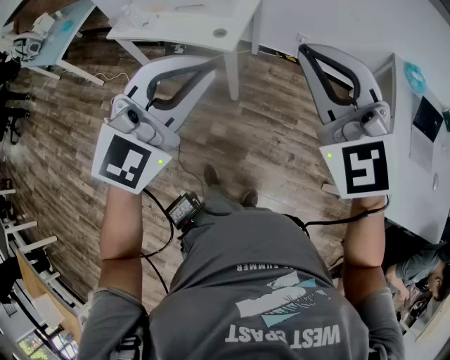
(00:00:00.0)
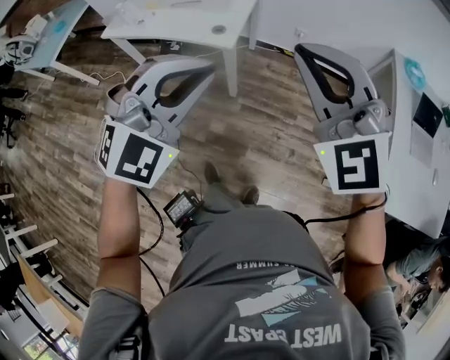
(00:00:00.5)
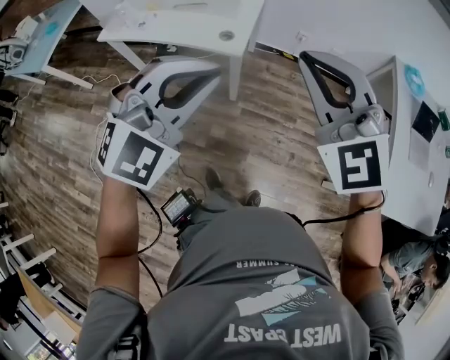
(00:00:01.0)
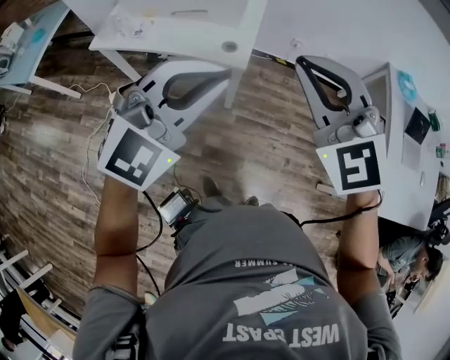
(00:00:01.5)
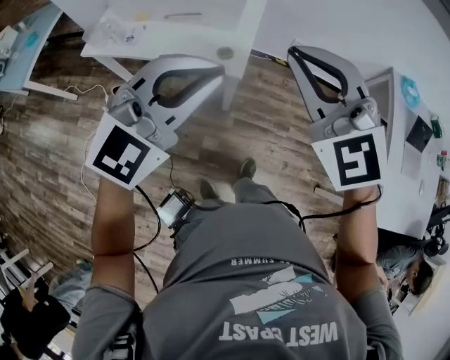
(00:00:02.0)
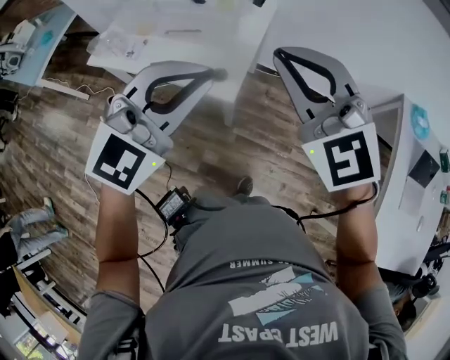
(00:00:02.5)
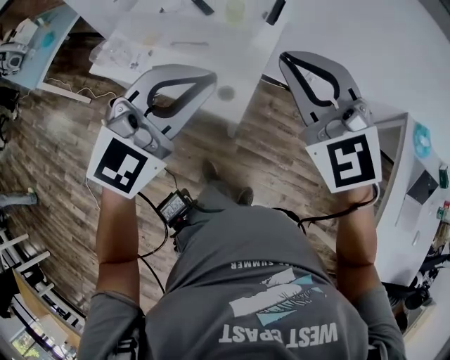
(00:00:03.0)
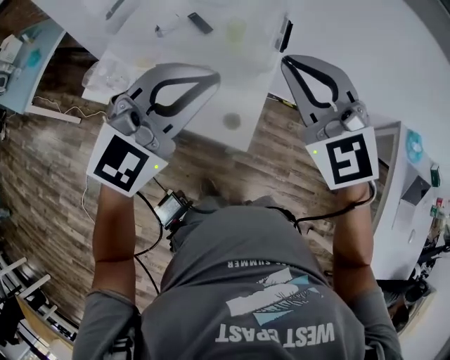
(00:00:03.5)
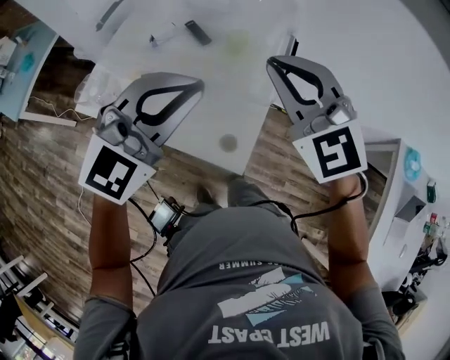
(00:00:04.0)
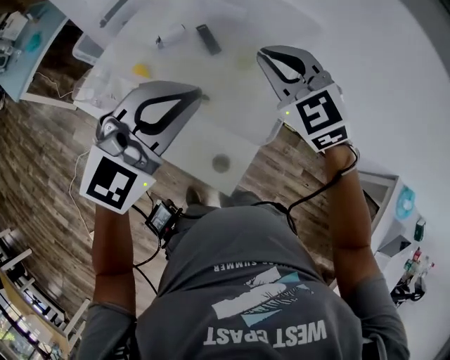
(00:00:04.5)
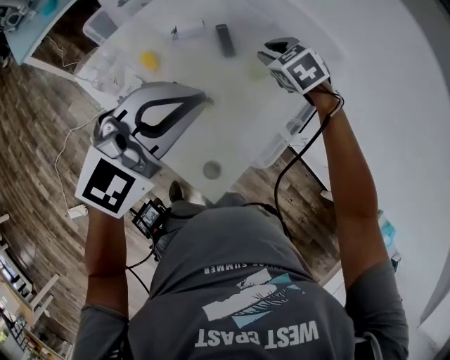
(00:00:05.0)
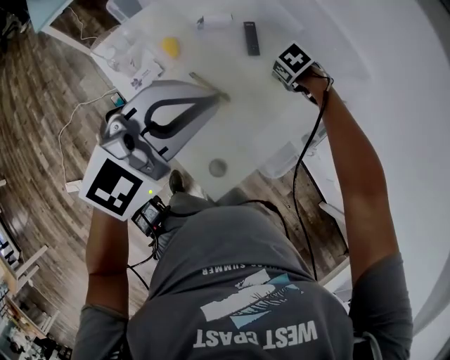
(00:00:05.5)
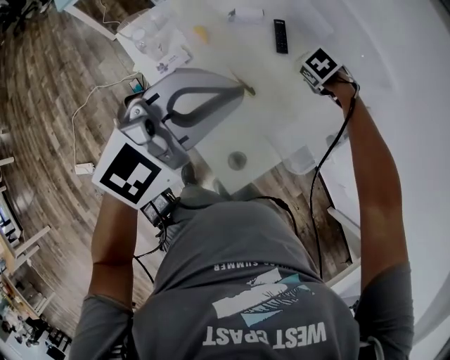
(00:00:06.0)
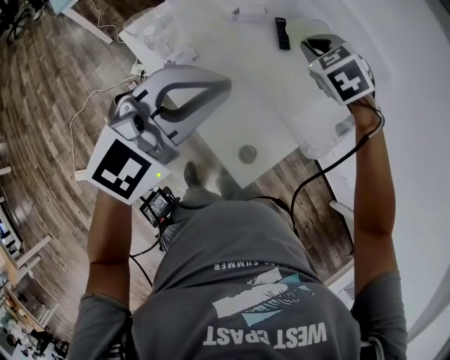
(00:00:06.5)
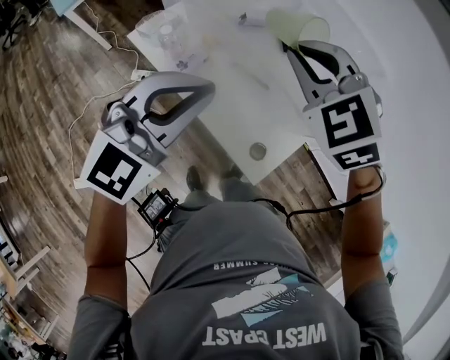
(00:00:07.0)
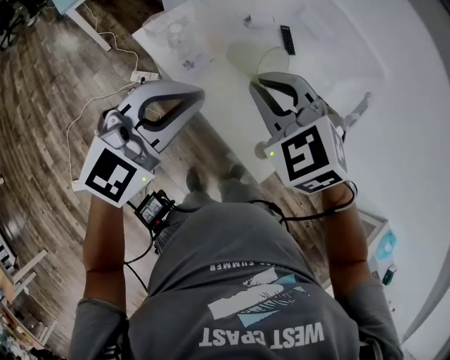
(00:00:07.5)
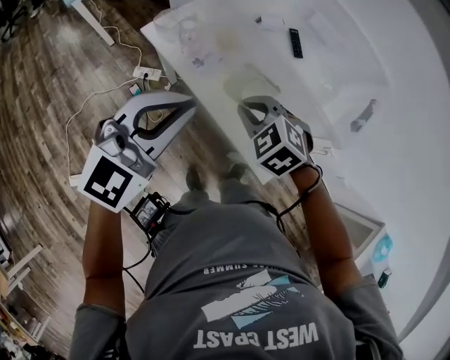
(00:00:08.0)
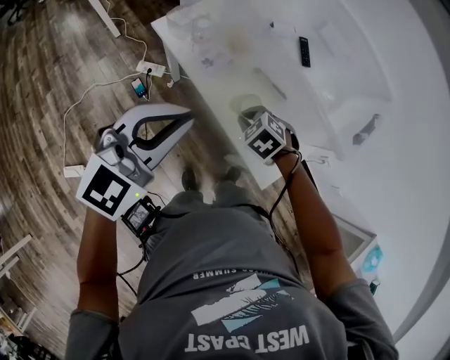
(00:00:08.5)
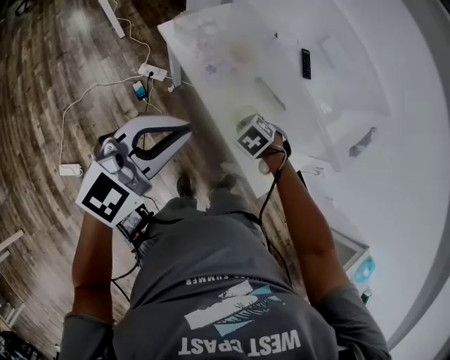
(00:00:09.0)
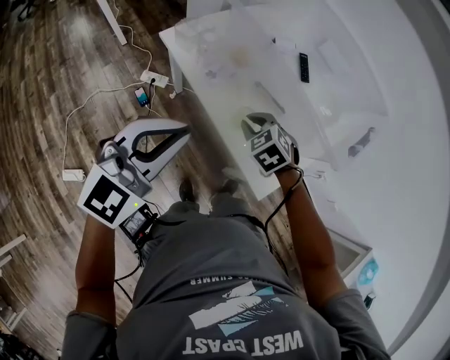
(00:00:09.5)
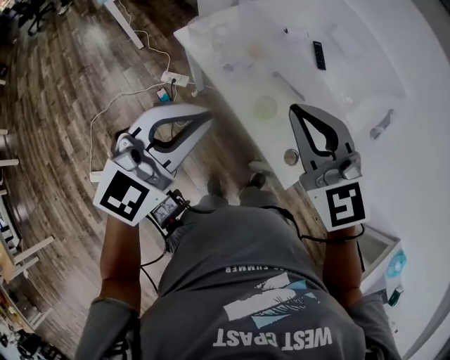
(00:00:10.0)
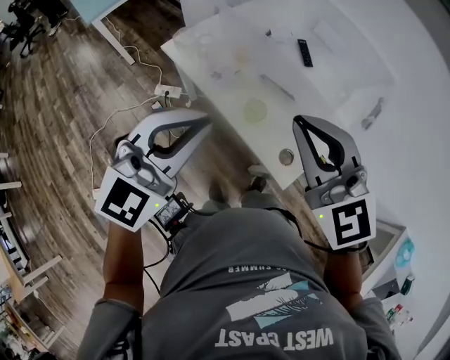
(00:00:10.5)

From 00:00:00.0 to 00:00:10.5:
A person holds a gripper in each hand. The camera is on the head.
From 00:00:00.0 to 00:00:02.0: Both grippers move forward and to the left, some 25 cm.
From 00:00:02.0 to 00:00:04.0: Both grippers travel together forward, roughly 35 cm.
From 00:00:04.0 to 00:00:06.5: The right gripper angles its fingers downward, by approximately 40 degrees, and opens and closes again; the left gripper shifts by some 10 cm, and swivels roughly 30 degrees.
From 00:00:06.5 to 00:00:08.5: The left gripper shifts some 20 cm to the left and backward; the right gripper travels backward, downward and to the left by approximately 35 cm.
From 00:00:08.5 to 00:00:10.5: The right gripper shifts roughly 35 cm upward, and tilts its fingers some 60 degrees upward. The left gripper is displaced upward by about 5 cm.

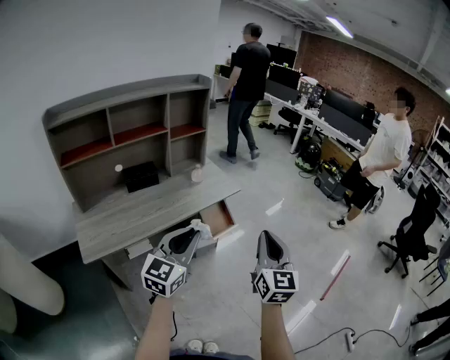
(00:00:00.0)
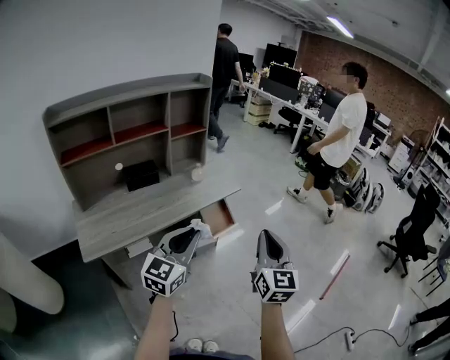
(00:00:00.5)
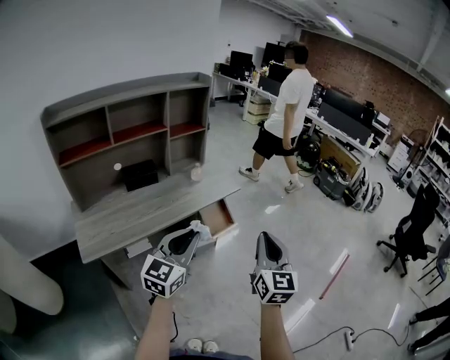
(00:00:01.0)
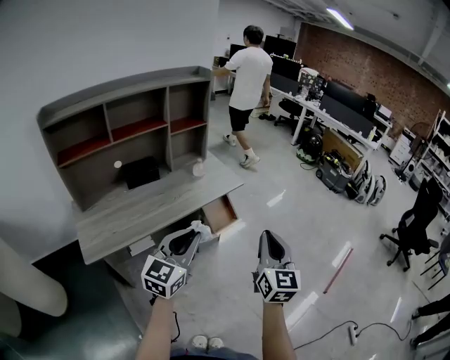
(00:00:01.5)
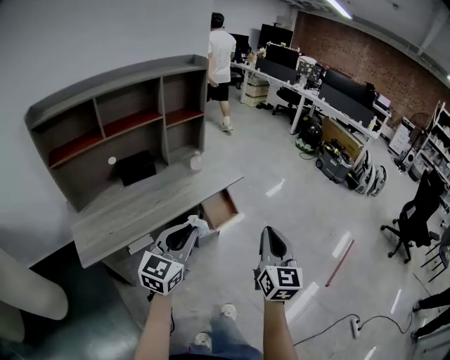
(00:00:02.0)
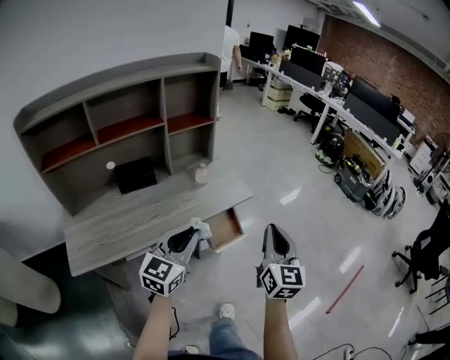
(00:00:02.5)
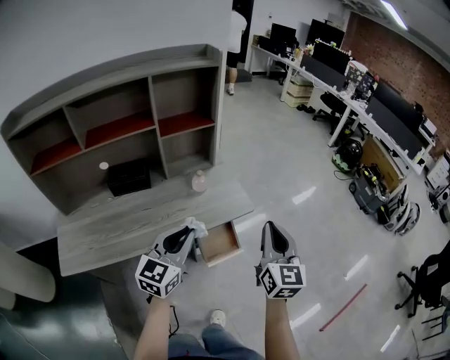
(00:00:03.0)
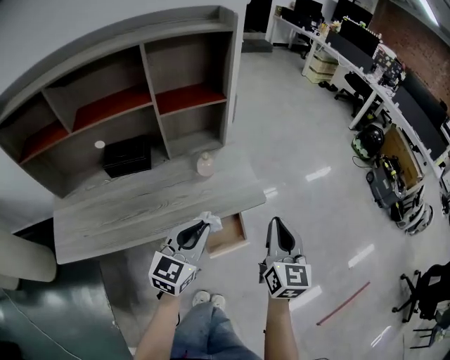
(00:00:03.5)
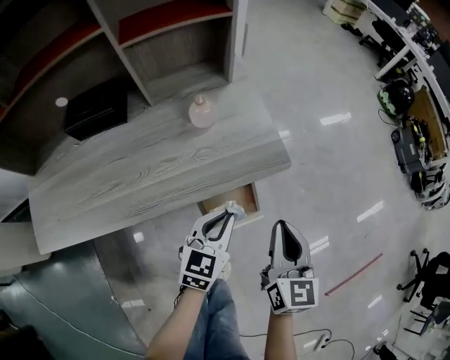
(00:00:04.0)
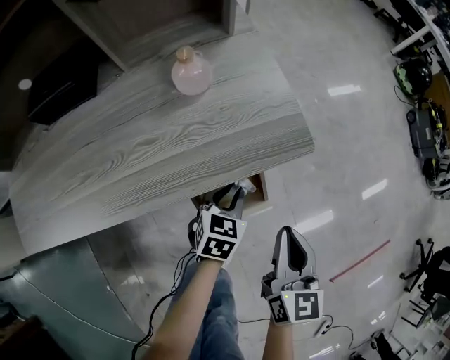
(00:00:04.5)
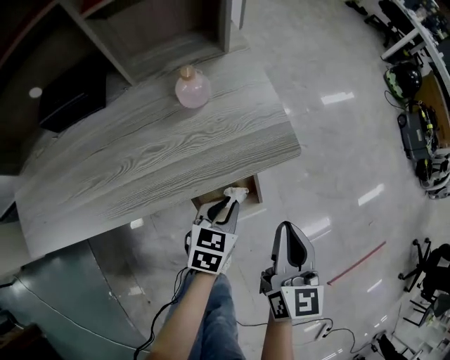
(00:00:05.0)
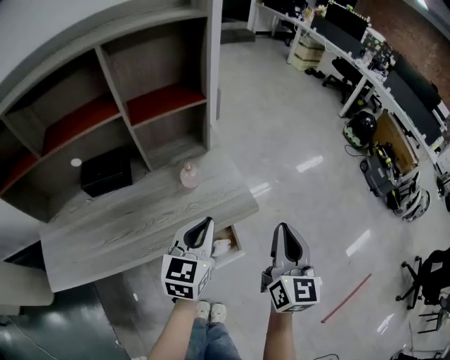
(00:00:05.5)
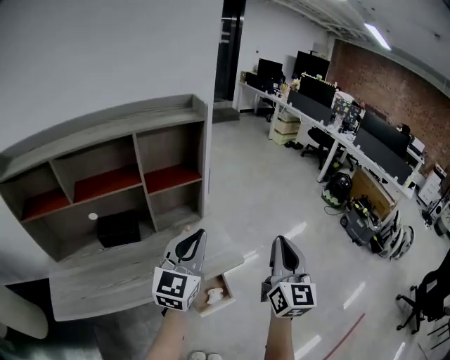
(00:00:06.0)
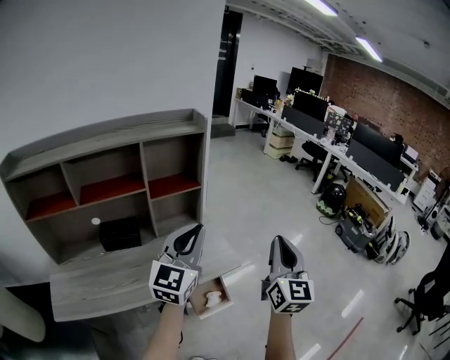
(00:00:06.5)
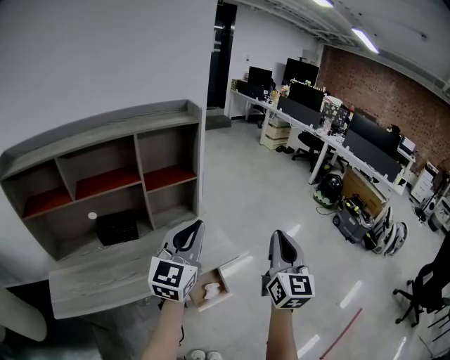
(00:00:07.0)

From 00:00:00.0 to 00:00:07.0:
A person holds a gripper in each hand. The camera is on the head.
From 00:00:00.0 to 00:00:02.0: The left gripper changes place by about 5 cm.
From 00:00:02.0 to 00:00:03.5: The grippers both shift forward by some 35 cm.
From 00:00:03.5 to 00:00:05.0: The left gripper heads downward, covering about 30 cm, and turns by roughly 30 degrees. The right gripper heads downward, covering roughly 20 cm.
From 00:00:05.0 to 00:00:07.0: Both grippers travel together upward, about 50 cm. The left gripper angles its fingers upward, by some 50 degrees. Meanwhile the right gripper tips its fingers upward by about 30 degrees.

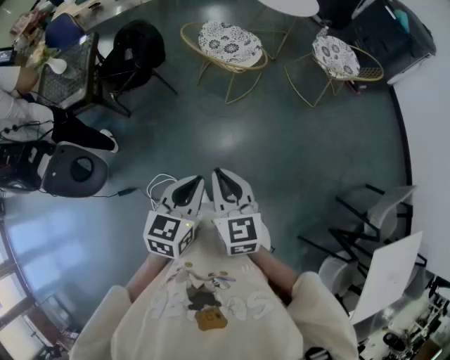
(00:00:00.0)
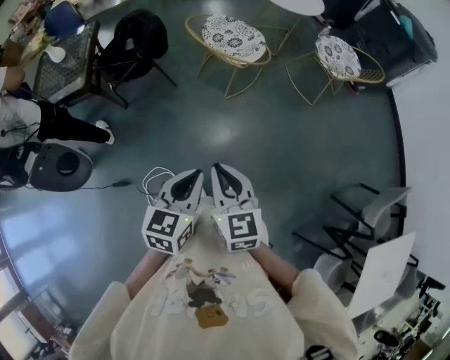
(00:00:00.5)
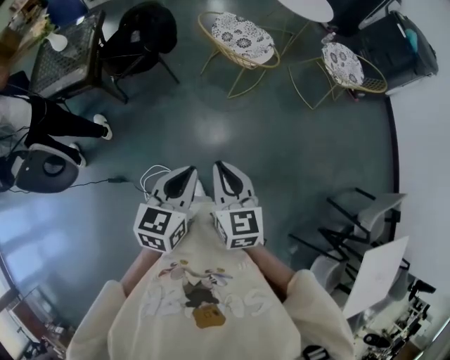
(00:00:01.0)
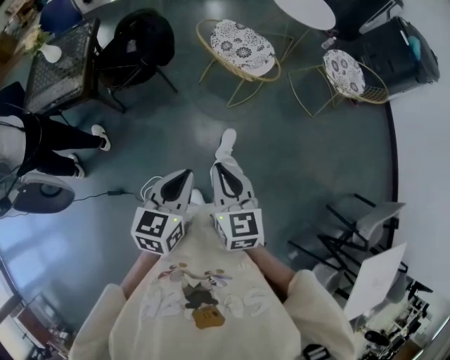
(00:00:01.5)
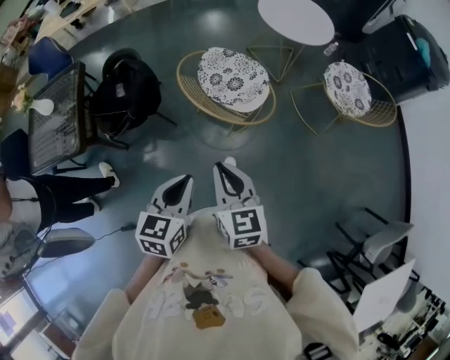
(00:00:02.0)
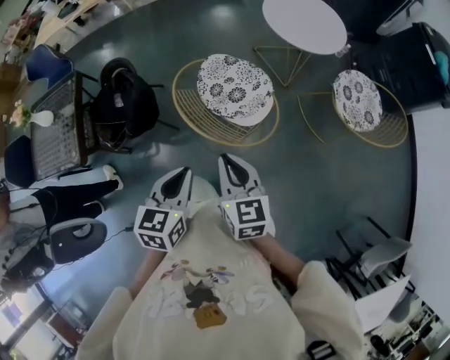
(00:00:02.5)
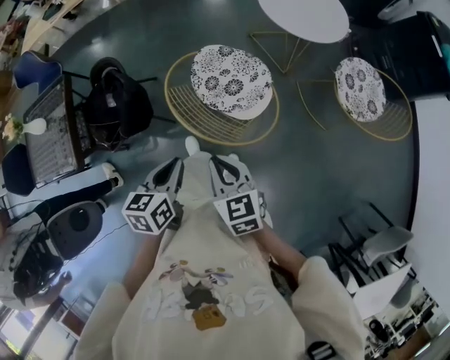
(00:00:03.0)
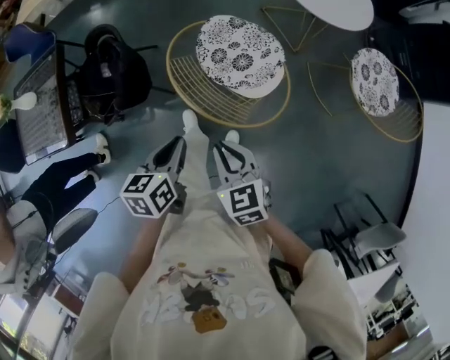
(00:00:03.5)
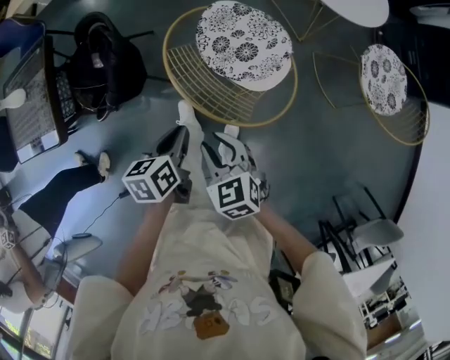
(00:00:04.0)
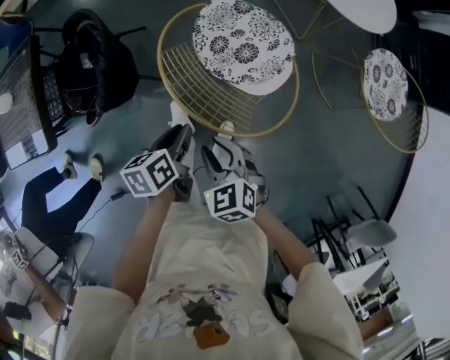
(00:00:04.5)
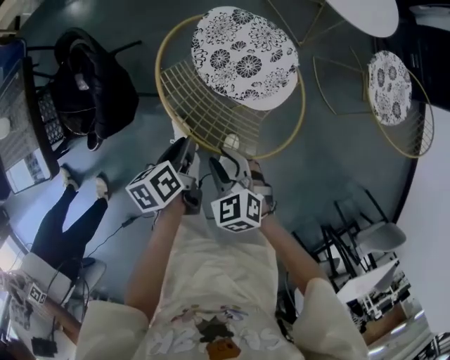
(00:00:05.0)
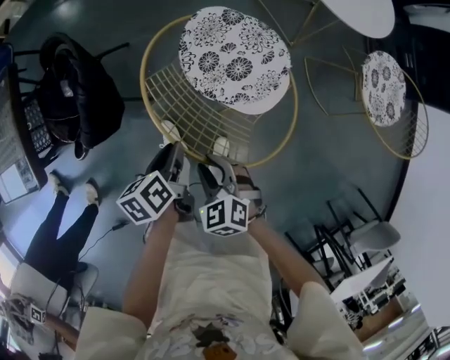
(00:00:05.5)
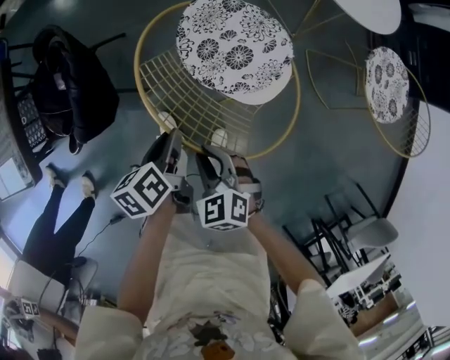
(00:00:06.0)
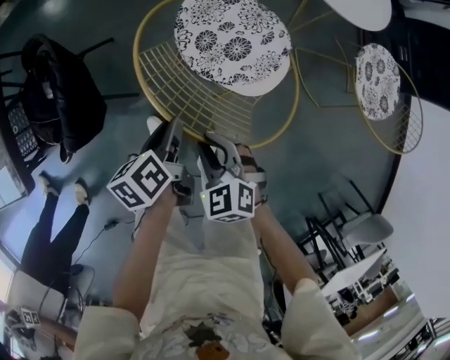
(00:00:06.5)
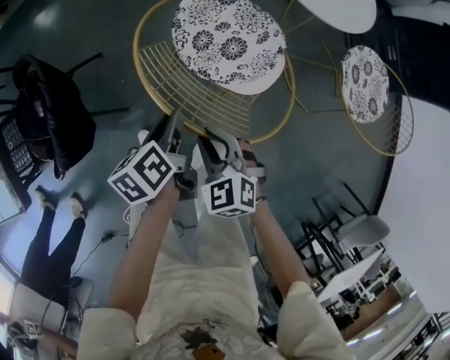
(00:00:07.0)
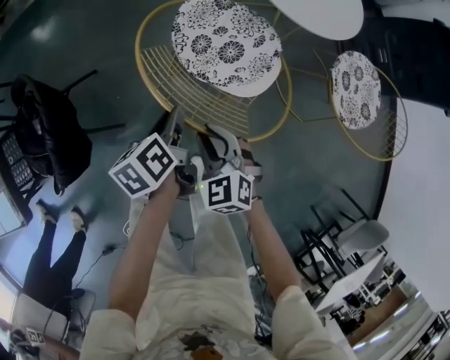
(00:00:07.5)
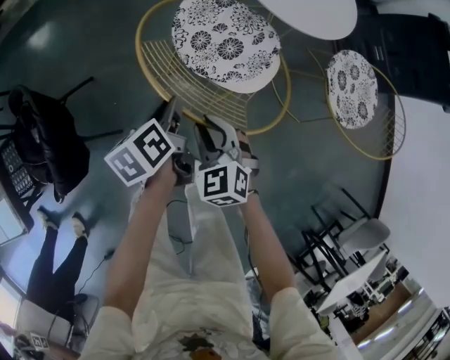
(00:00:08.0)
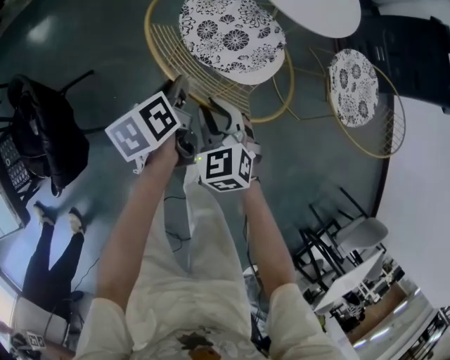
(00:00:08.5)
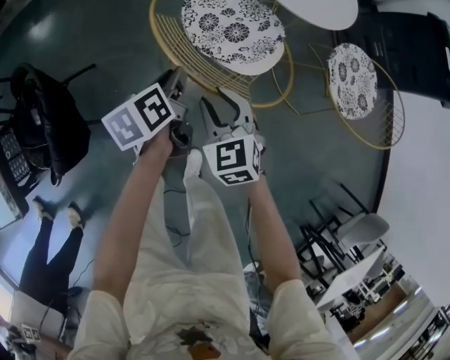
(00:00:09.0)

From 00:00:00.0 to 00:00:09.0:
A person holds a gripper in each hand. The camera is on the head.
From 00:00:00.0 to 00:00:02.0: The two grippers go about 35 cm forward.
From 00:00:02.0 to 00:00:04.5: Both grippers move downward and forward, some 35 cm. The left gripper rotates around the line of its fingers by some 40 degrees, counterclockwise from behind; the right gripper swivels about 40 degrees, and opens up.
From 00:00:04.5 to 00:00:07.0: Both grippers travel together downward, about 10 cm.
From 00:00:07.0 to 00:00:09.0: The grippers make only small movements.
